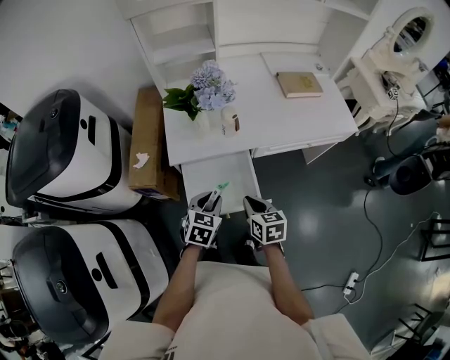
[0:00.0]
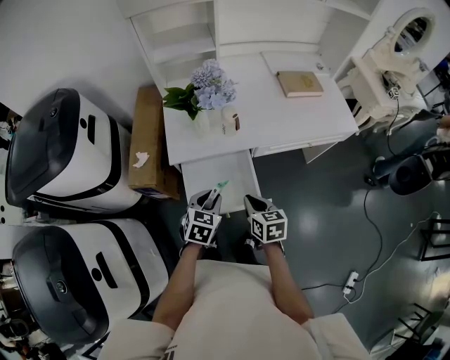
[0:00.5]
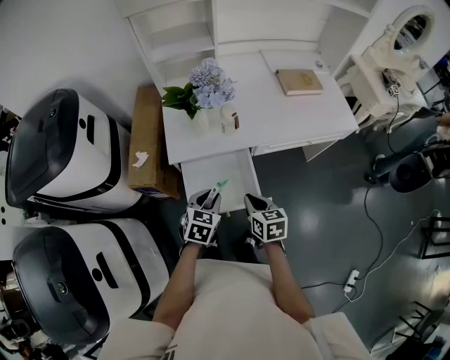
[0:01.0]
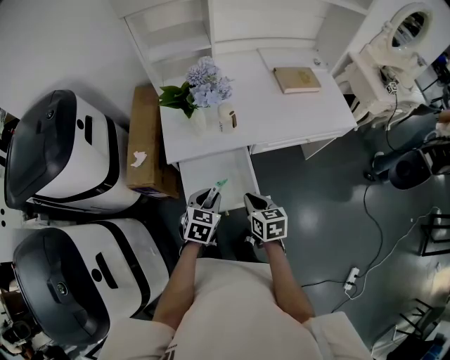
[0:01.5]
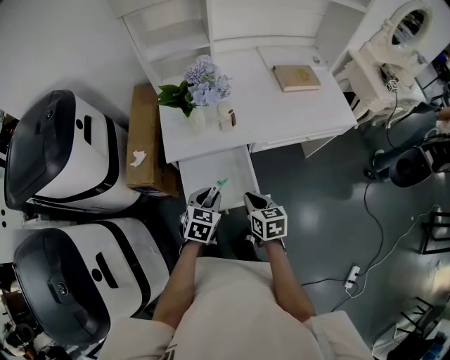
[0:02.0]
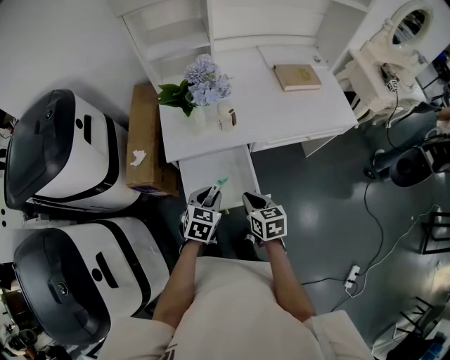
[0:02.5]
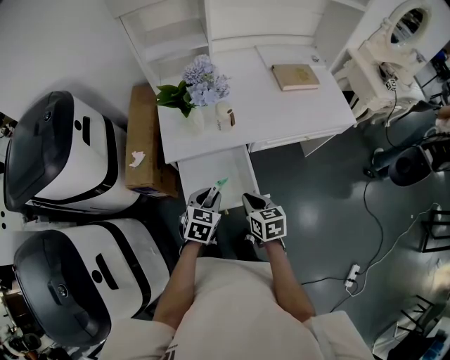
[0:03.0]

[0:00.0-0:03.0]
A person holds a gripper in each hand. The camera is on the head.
0:00.0 to 0:03.0: Neither gripper changes place.

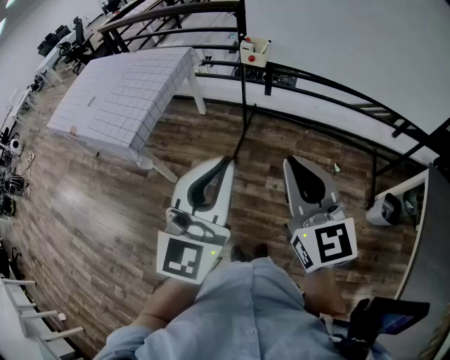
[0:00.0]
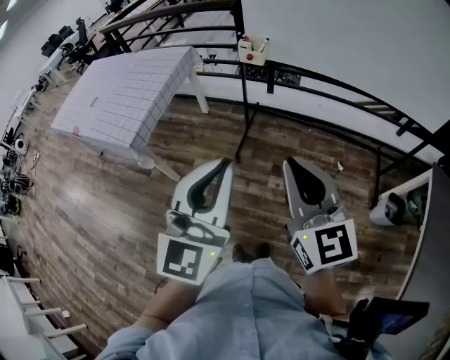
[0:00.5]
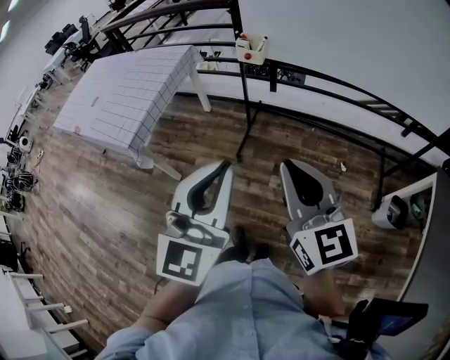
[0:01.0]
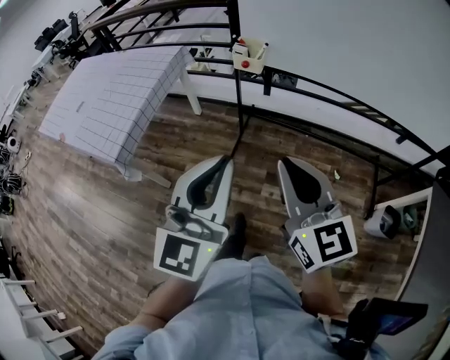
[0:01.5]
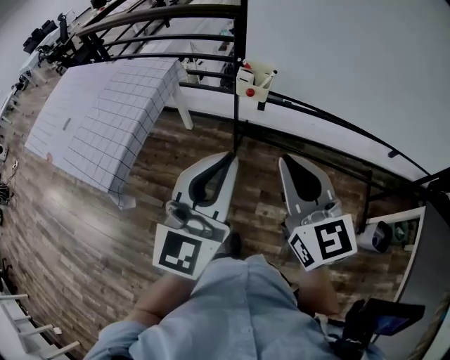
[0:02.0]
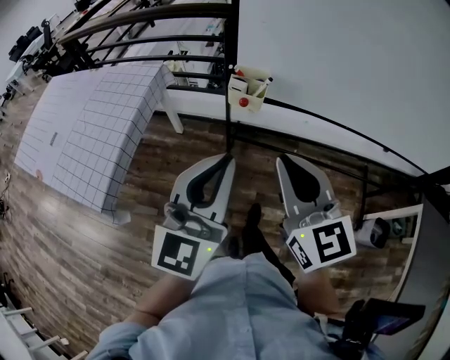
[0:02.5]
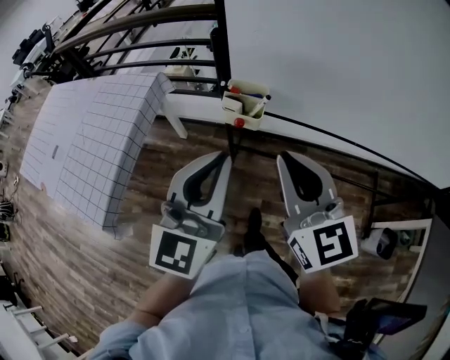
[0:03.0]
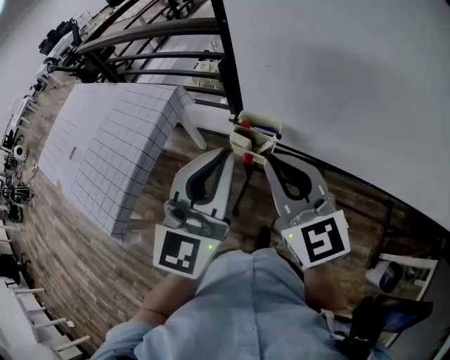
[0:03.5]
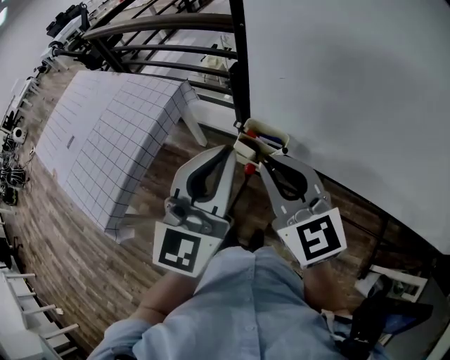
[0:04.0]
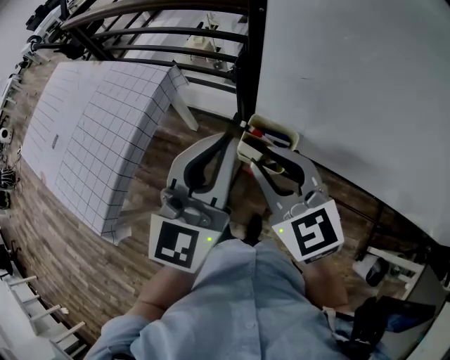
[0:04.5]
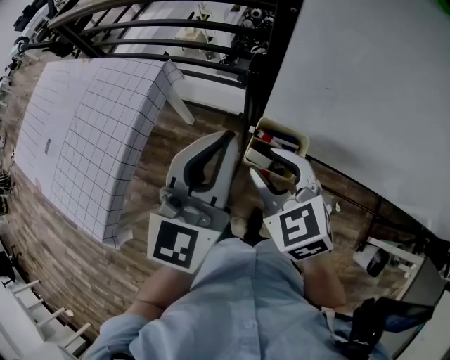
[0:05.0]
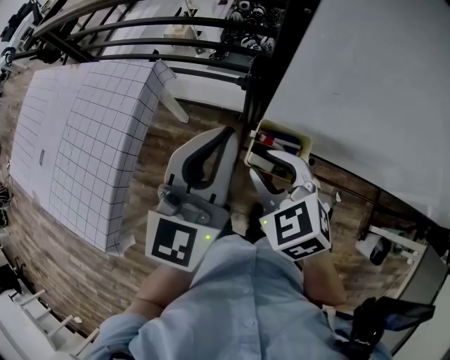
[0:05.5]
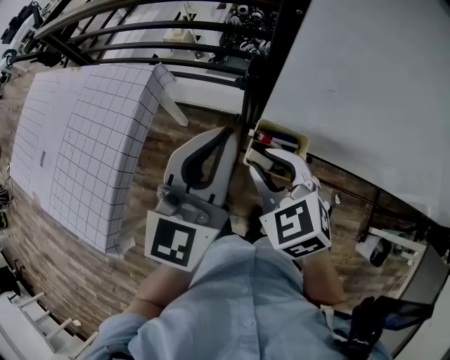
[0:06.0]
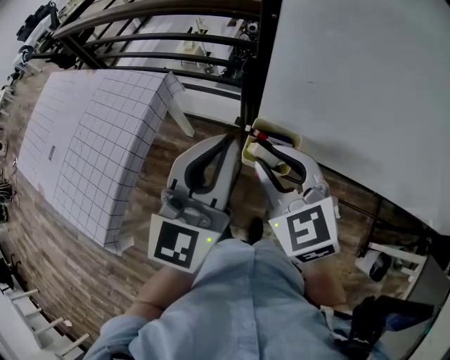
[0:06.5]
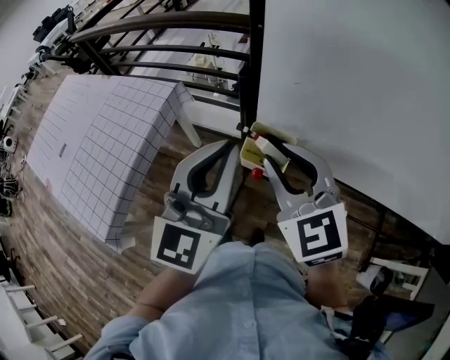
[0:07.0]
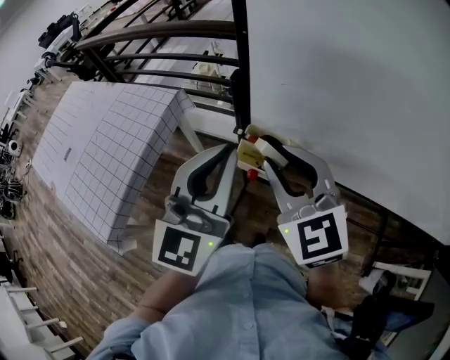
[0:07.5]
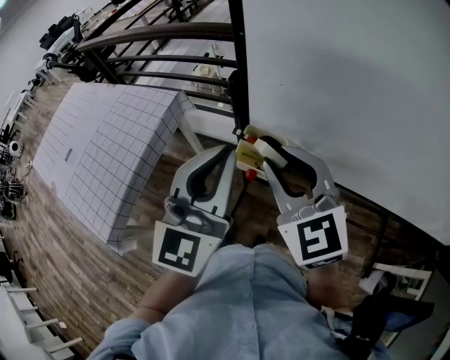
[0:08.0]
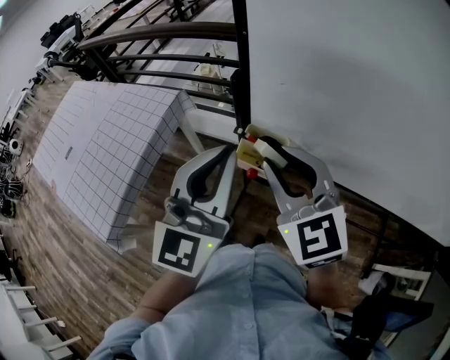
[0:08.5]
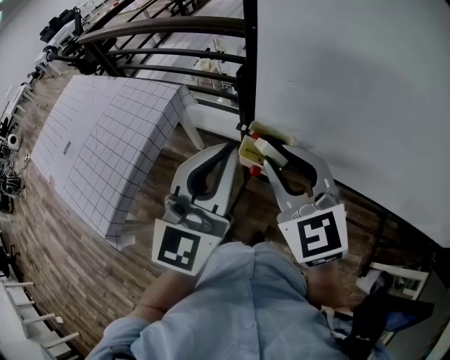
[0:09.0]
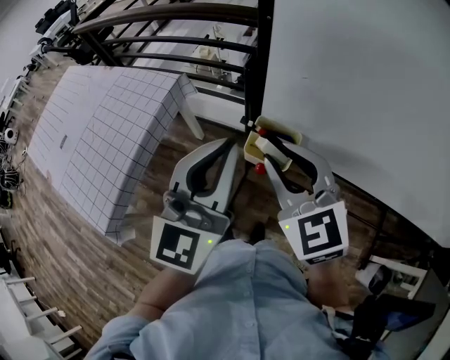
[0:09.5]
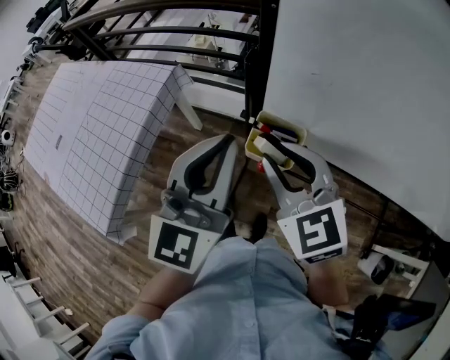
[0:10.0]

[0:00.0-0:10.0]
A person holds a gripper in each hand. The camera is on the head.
0:00.0 to 0:02.0: Both grippers travel together forward, approximately 25 cm.
0:02.0 to 0:04.0: The two grippers go roughly 30 cm forward.
0:04.0 to 0:06.0: The right gripper travels downward and forward by some 15 cm, points its fingers about 30 degrees further downward, and opens its fingers. Meanwhile the left gripper is displaced forward by approximately 10 cm.
0:06.0 to 0:08.0: The right gripper shifts roughly 15 cm upward, backward and to the right, and swivels about 20 degrees, while the left gripper is displaced backward and upward by roughly 10 cm.
0:08.0 to 0:10.0: The right gripper moves downward, about 5 cm. Meanwhile the left gripper ends up approximately 5 cm from where it was.

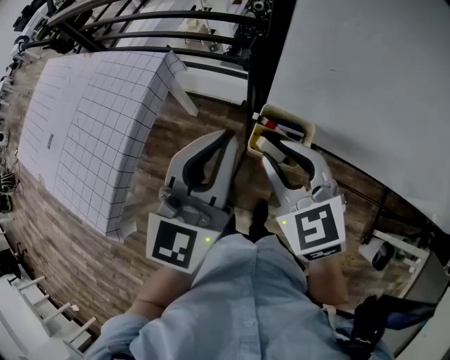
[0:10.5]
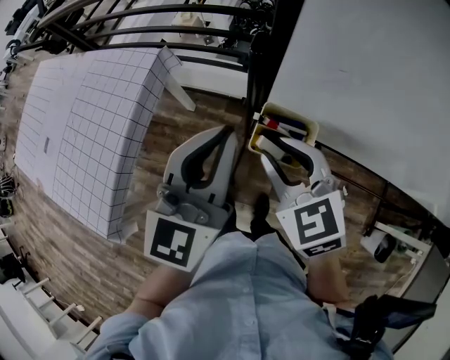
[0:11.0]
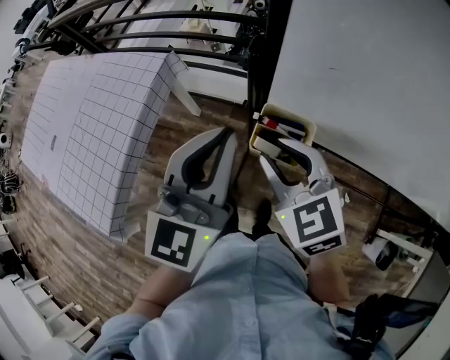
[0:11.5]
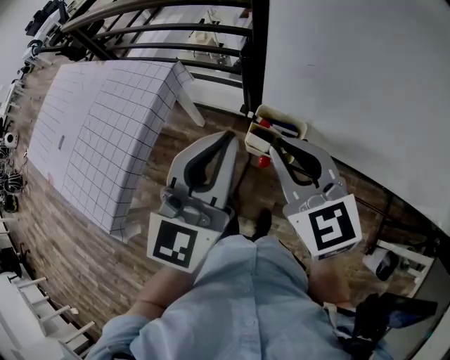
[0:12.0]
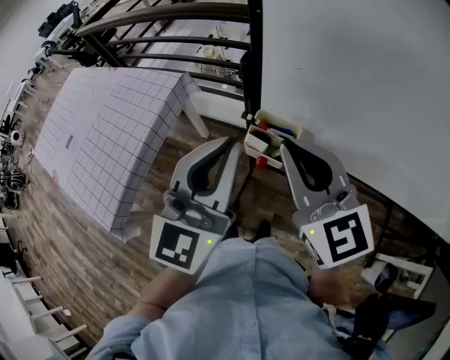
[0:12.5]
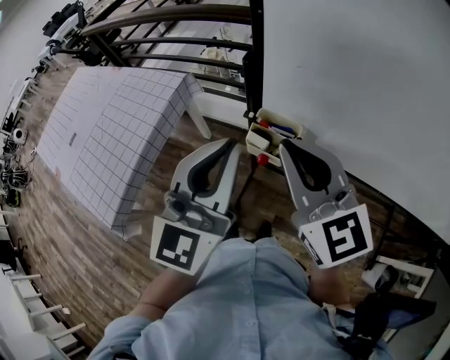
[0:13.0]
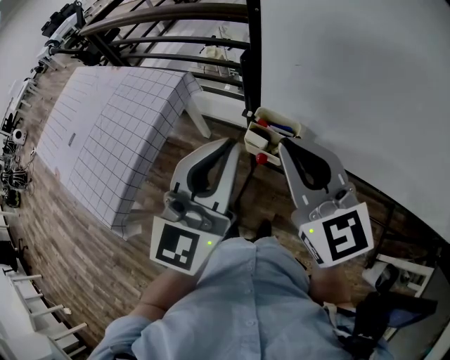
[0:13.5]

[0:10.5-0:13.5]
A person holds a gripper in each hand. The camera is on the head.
0:10.5 to 0:12.0: The right gripper heads upward, covering approximately 5 cm.
0:12.0 to 0:13.5: The right gripper goes roughly 5 cm upward, while the left gripper changes place by some 5 cm.

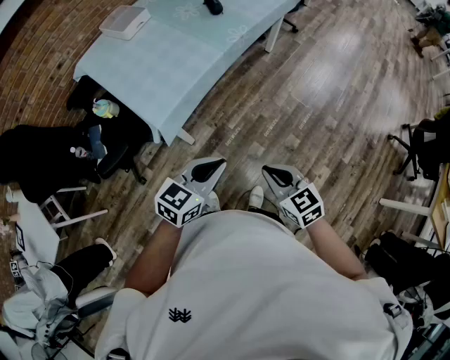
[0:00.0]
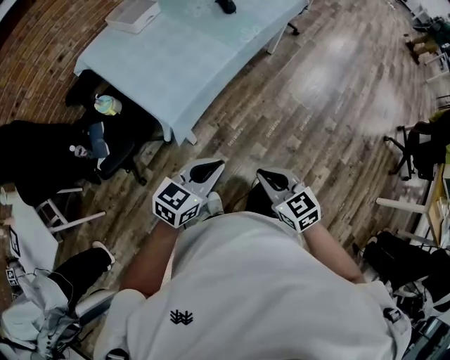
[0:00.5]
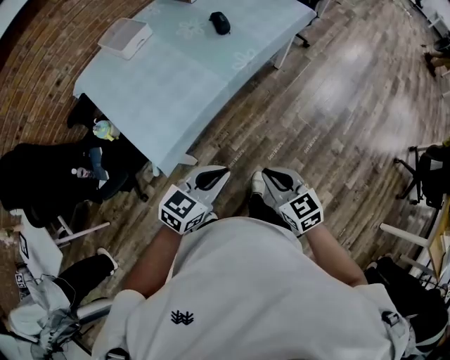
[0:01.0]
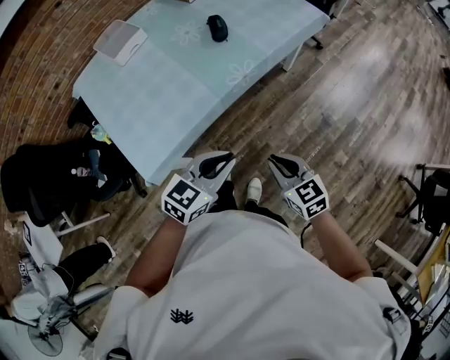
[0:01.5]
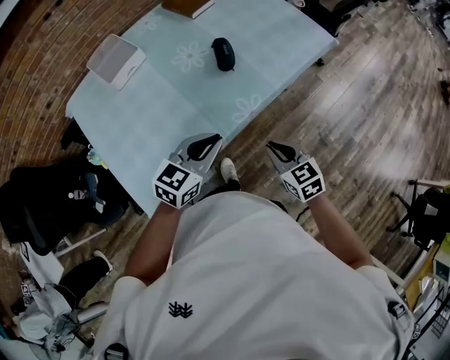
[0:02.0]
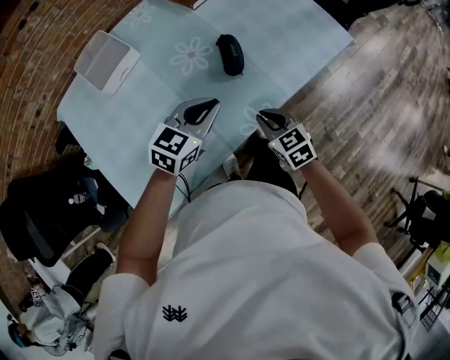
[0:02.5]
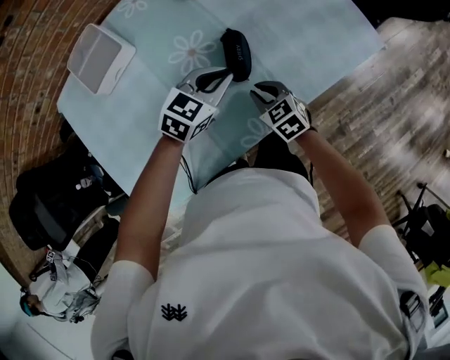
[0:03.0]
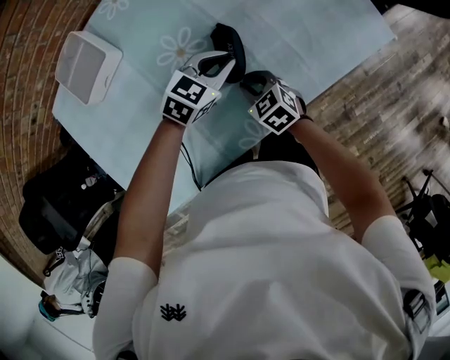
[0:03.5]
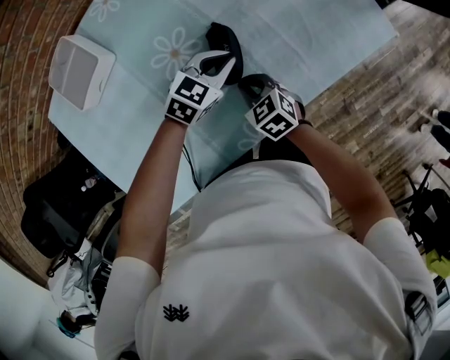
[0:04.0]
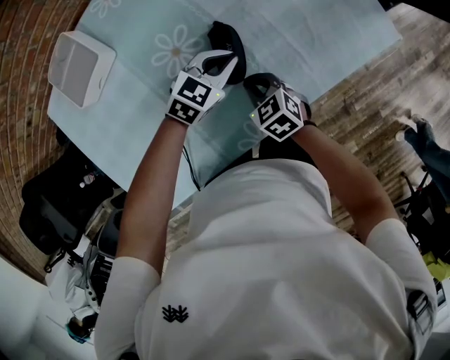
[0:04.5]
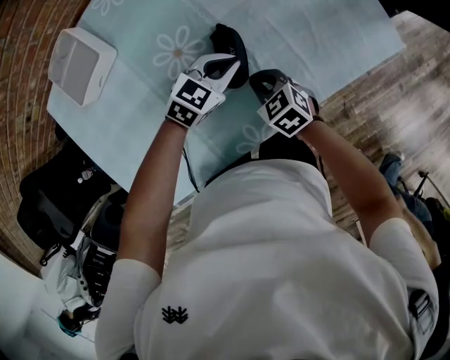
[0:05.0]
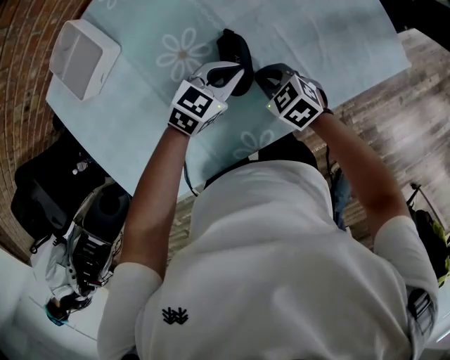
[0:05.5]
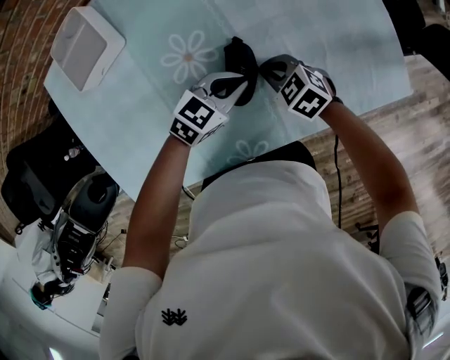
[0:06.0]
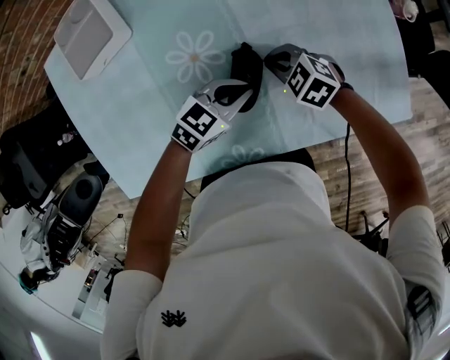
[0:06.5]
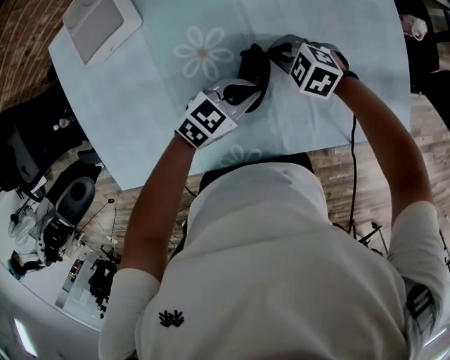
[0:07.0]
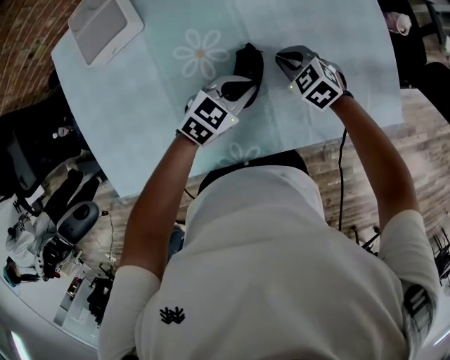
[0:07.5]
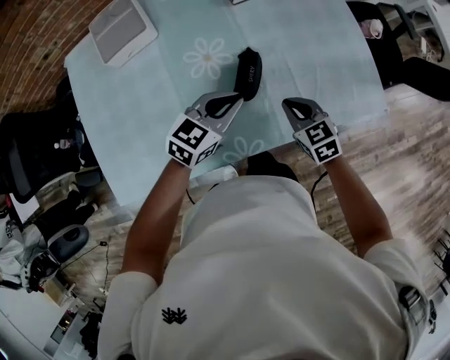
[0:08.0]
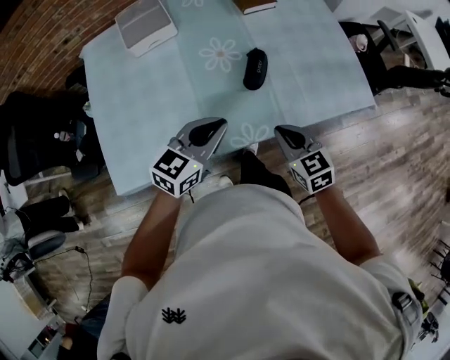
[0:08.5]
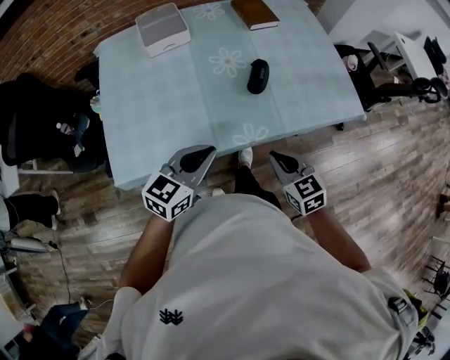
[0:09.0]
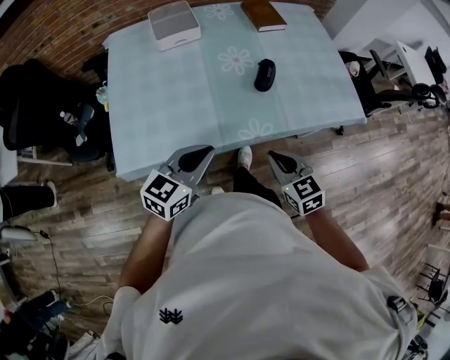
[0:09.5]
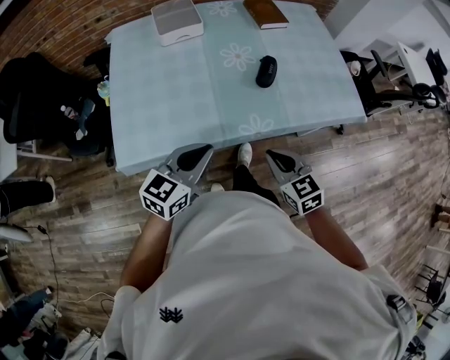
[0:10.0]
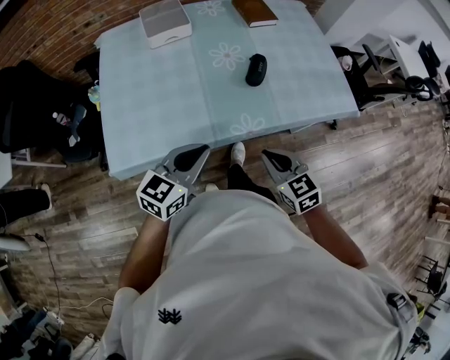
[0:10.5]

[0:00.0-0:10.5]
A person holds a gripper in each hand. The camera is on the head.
0:00.0 to 0:02.0: Both grippers are carried forward, some 50 cm.
0:02.0 to 0:04.0: Both grippers move forward and downward, roughly 35 cm. The right gripper rotates about 20 degrees.
0:04.0 to 0:06.5: The right gripper moves roughly 15 cm, and swivels about 40 degrees.
0:06.5 to 0:08.5: The right gripper shifts by approximately 30 cm, and swivels about 40 degrees, while the left gripper changes place by about 30 cm, and rotates about 30 degrees.
0:08.5 to 0:10.5: The right gripper is displaced backward by some 15 cm, while the left gripper goes roughly 15 cm backward and to the left.
